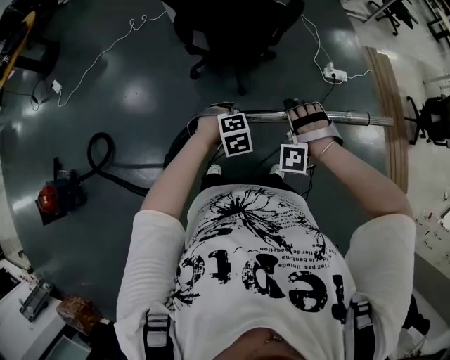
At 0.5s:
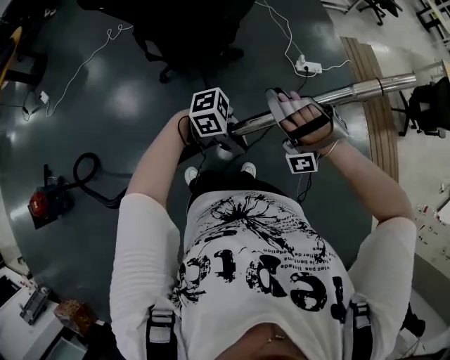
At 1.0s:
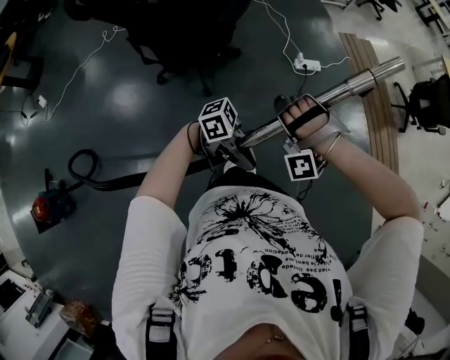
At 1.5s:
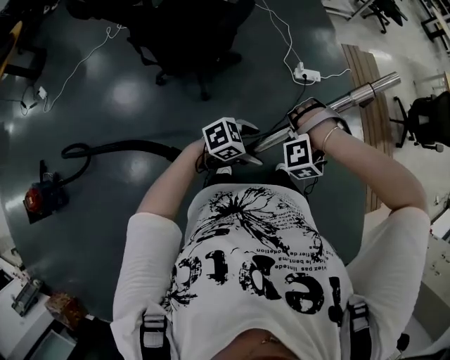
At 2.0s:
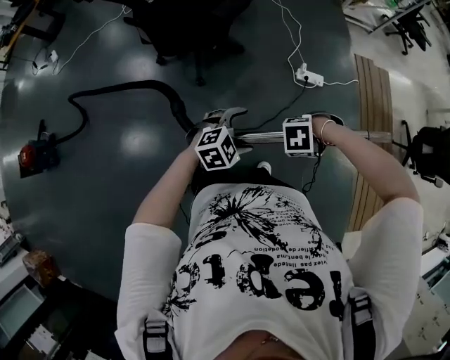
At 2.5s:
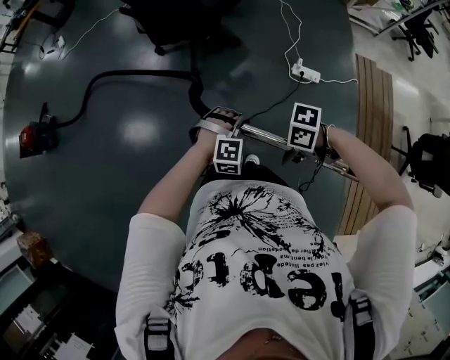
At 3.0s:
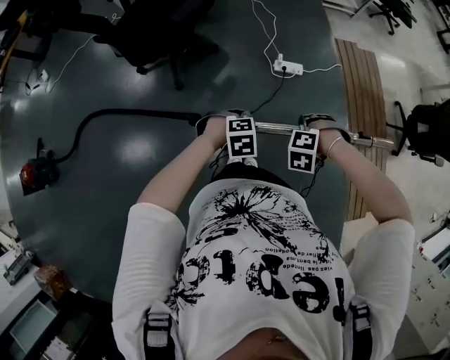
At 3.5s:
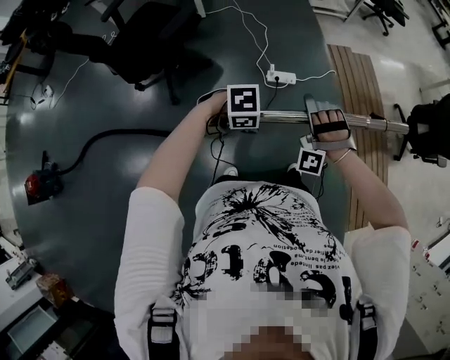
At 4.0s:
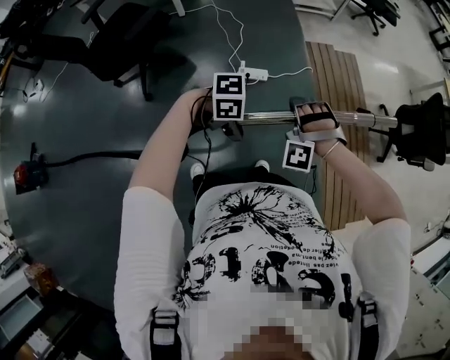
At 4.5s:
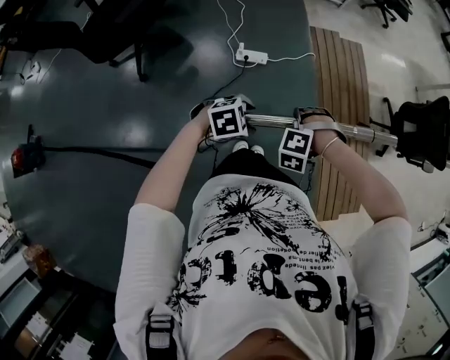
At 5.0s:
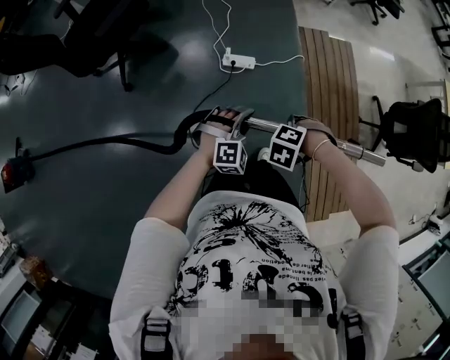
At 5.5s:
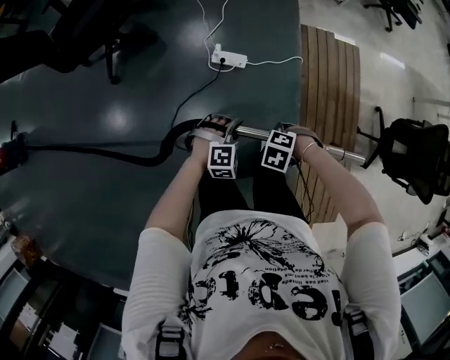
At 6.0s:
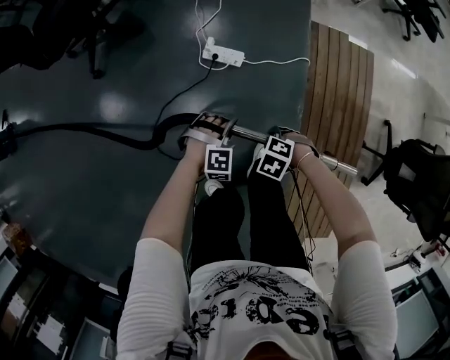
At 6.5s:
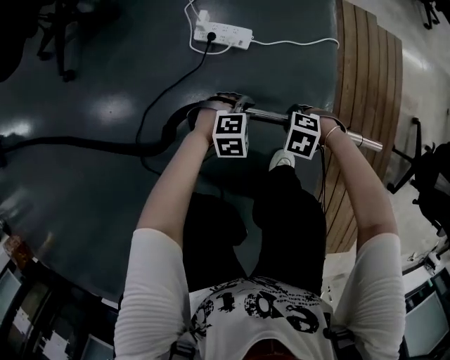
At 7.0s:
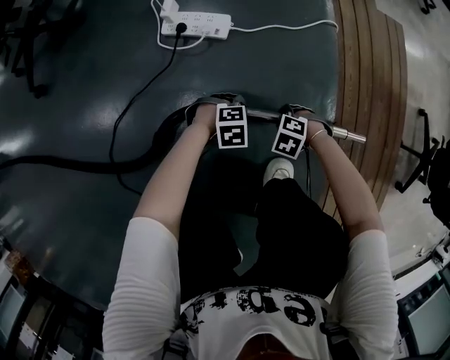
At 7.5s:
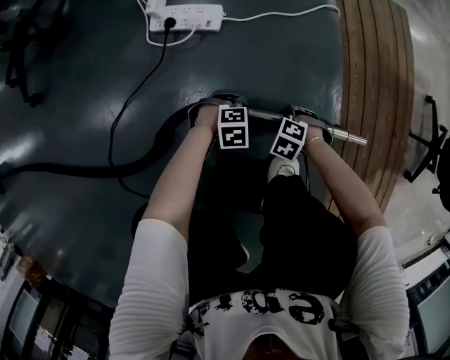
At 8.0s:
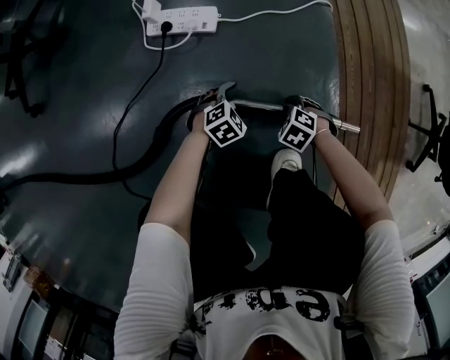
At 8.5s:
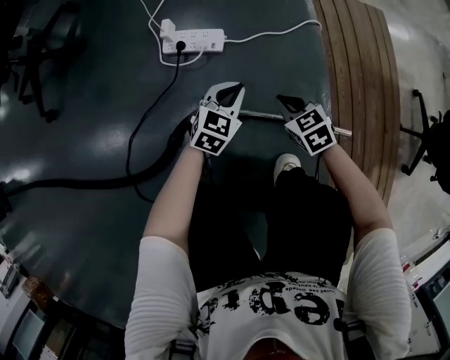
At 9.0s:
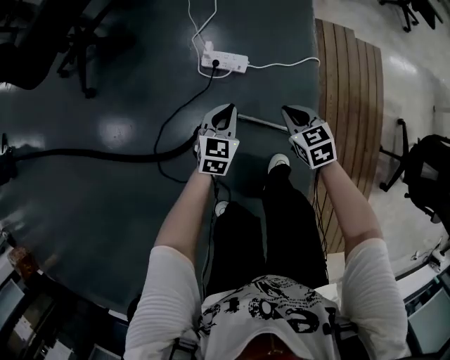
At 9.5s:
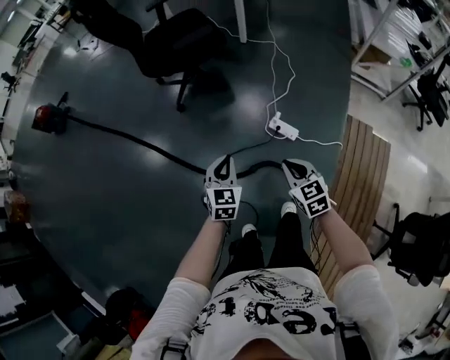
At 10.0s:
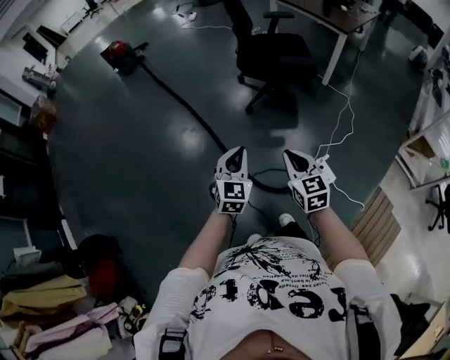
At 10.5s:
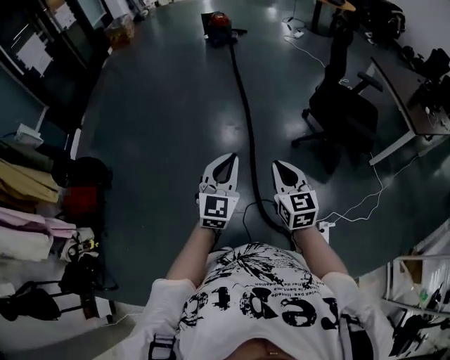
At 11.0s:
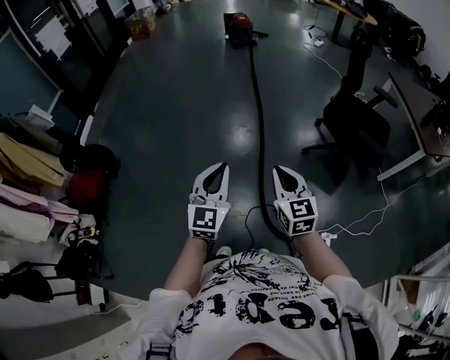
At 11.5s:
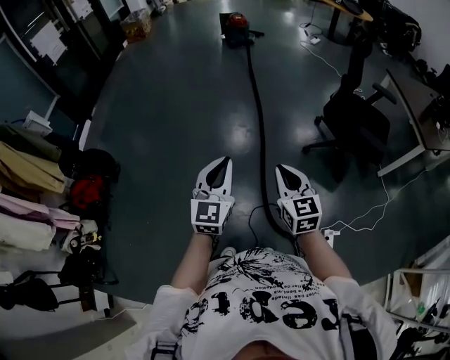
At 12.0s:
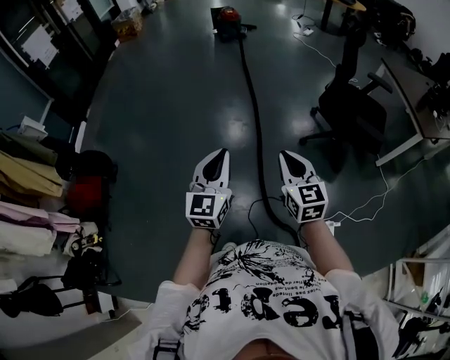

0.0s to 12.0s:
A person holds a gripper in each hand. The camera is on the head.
0.0s to 2.0s: The left gripper travels upward and back again, about 10 cm each way, turns by some 30 degrees, and opens its fingers.
2.0s to 4.0s: The left gripper shifts by some 40 cm, rotates roughly 60 degrees, and closes up.
4.0s to 6.0s: The left gripper travels downward by roughly 35 cm, and swivels some 70 degrees.
6.0s to 8.0s: The left gripper goes about 50 cm downward, swivels approximately 40 degrees, and opens up.
8.0s to 10.0s: The left gripper heads upward, covering approximately 1 m, tips its fingers upward by roughly 40 degrees, and closes its fingers.
10.0s to 12.0s: The left gripper changes place by approximately 25 cm, and rotates approximately 40 degrees.

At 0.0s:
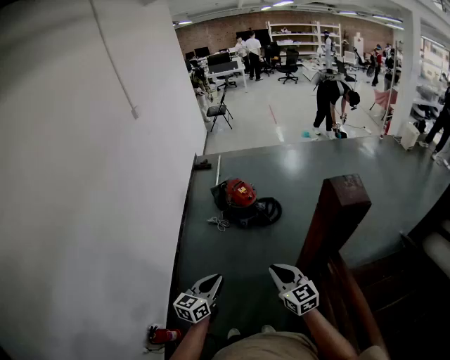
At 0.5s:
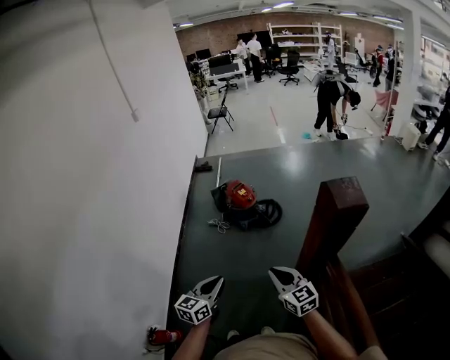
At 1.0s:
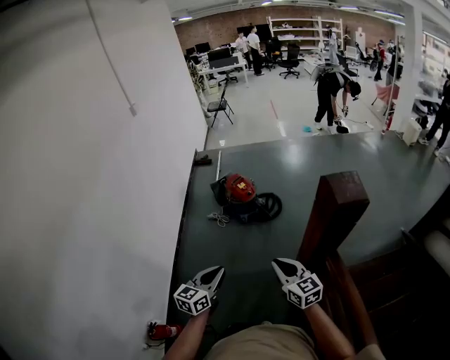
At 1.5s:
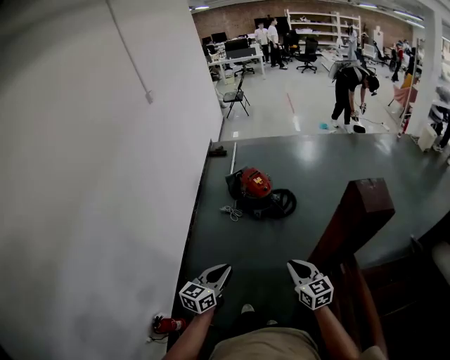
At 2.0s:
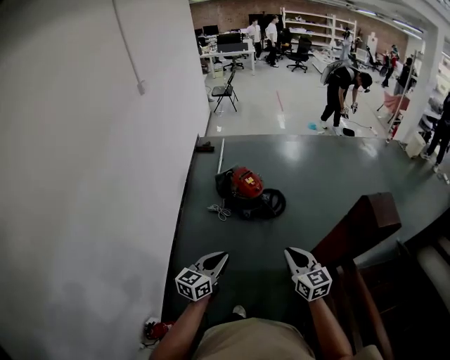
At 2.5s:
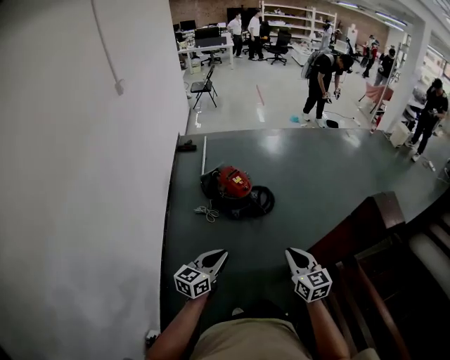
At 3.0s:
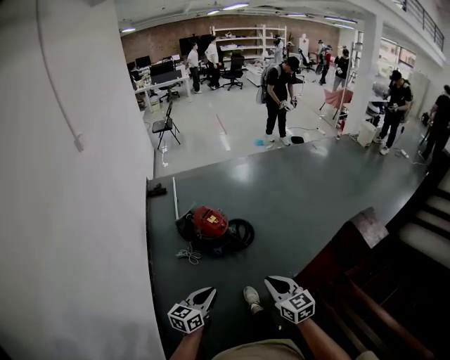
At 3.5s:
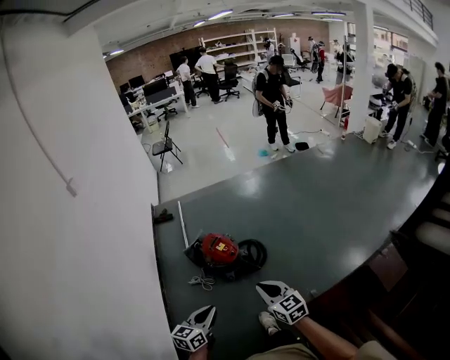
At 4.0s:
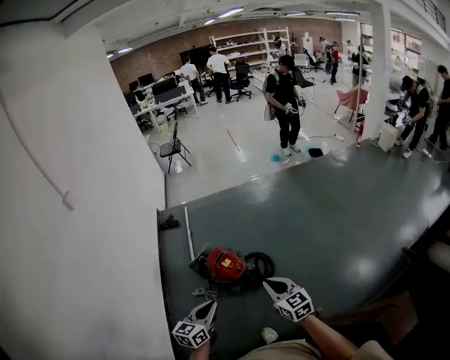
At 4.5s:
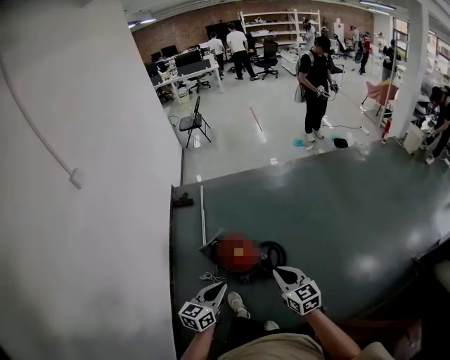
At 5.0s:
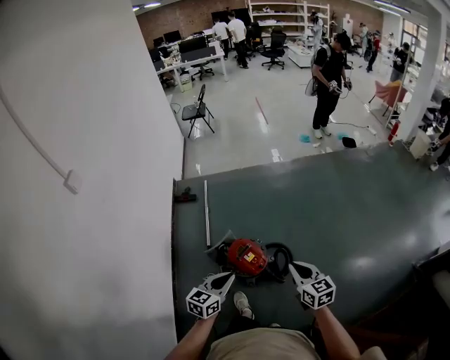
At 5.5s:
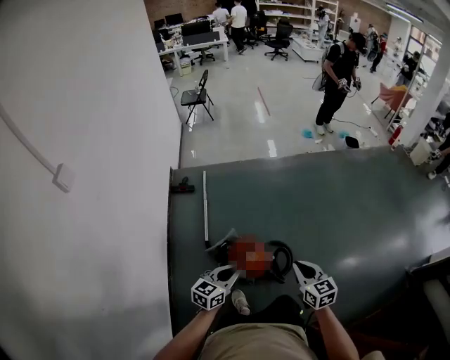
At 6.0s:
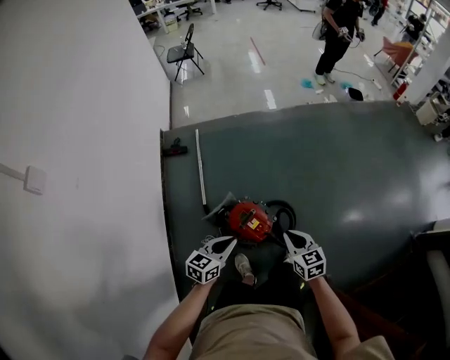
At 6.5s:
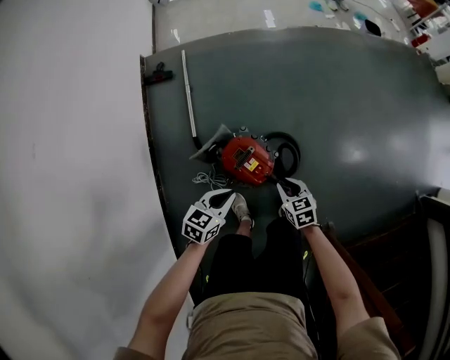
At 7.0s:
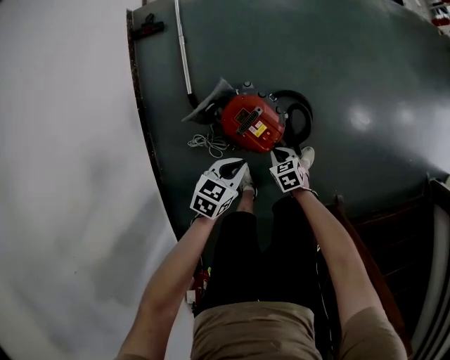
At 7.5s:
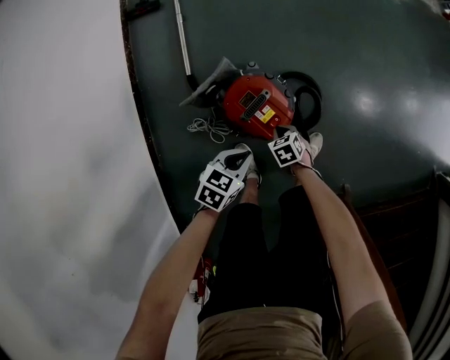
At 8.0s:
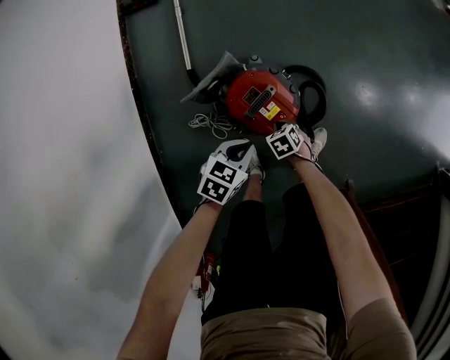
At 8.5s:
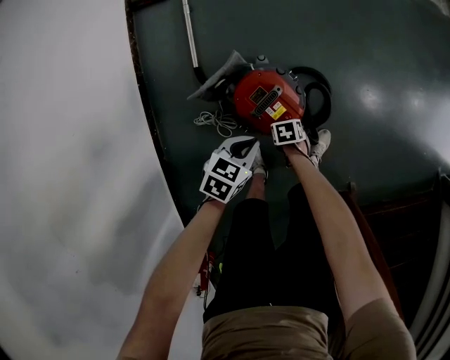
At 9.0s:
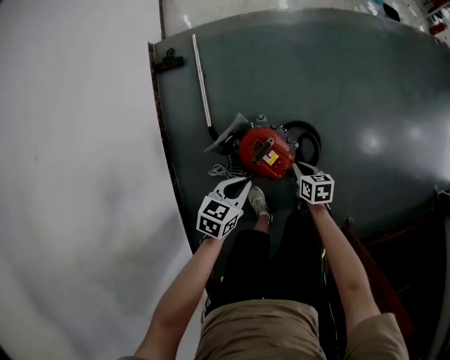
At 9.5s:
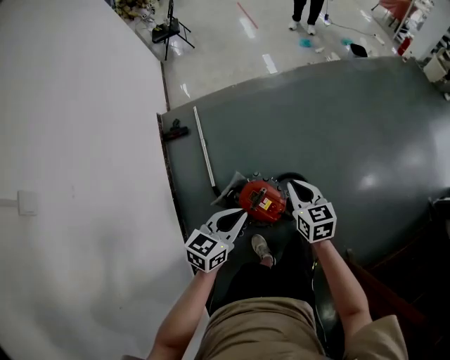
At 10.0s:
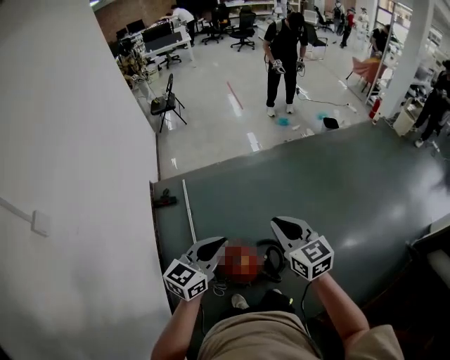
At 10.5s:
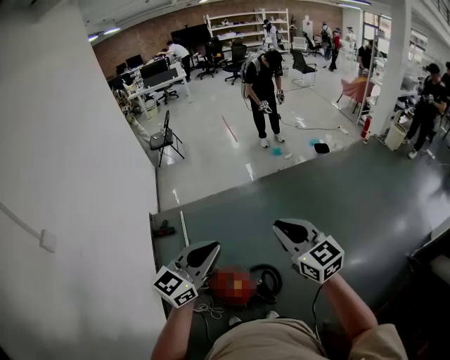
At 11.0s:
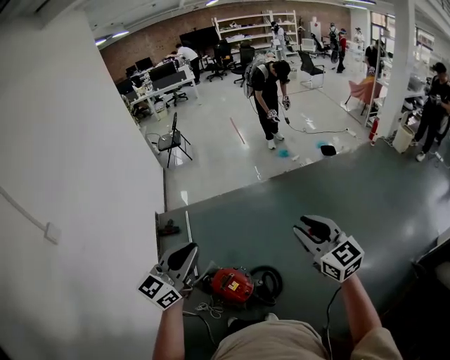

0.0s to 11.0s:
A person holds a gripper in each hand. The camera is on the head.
0.0s to 2.0s: The right gripper goes about 10 cm forward; the left gripper travels forward and to the left by approximately 15 cm.
2.0s to 3.5s: The two grippers go about 25 cm forward.
3.5s to 5.5s: The two grippers travel together, forward, roughly 50 cm.
5.5s to 7.5s: The two grippers go about 50 cm downward. The left gripper swivels roughly 30 degrees. Meanwhile the right gripper tilts its fingers roughly 40 degrees downward.
7.5s to 9.0s: Both grippers move upward, about 20 cm. The right gripper swivels some 40 degrees.
9.0s to 11.0s: The two grippers go approximately 60 cm upward. The right gripper points its fingers approximately 50 degrees further upward, and opens up. The left gripper tilts its fingers about 50 degrees upward.

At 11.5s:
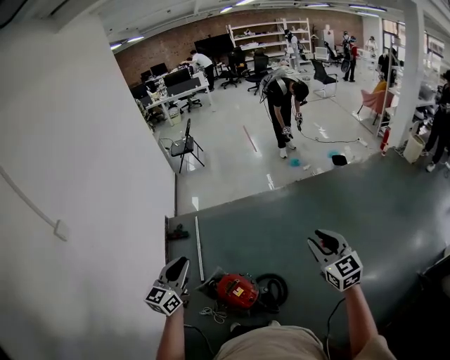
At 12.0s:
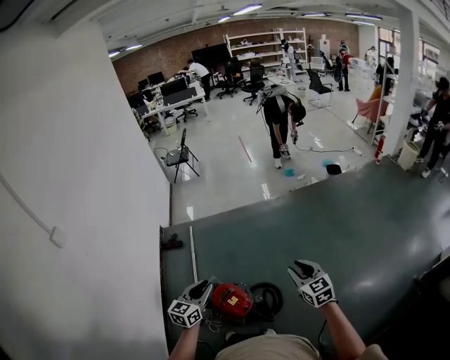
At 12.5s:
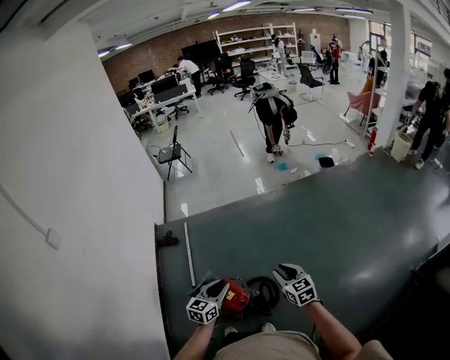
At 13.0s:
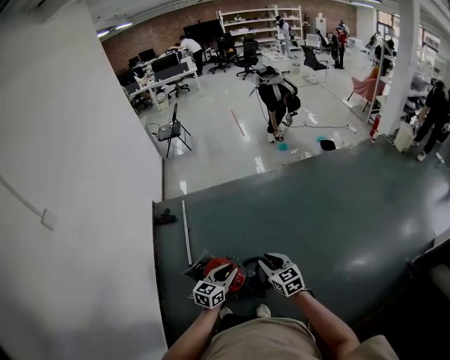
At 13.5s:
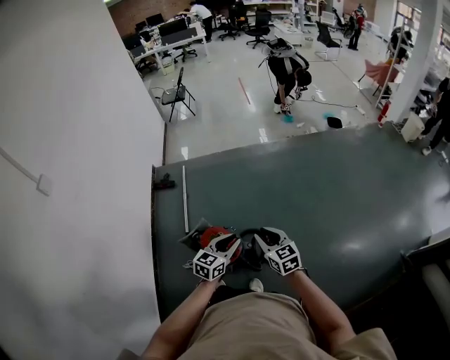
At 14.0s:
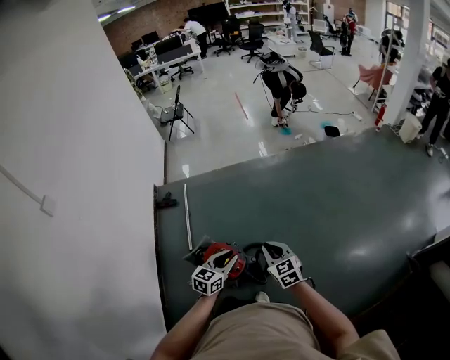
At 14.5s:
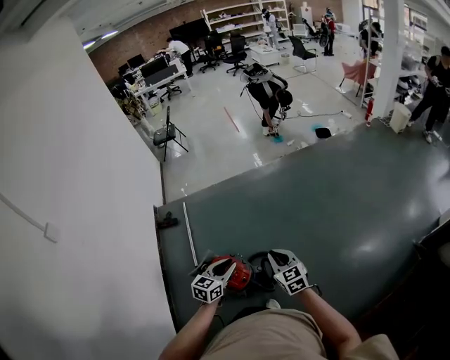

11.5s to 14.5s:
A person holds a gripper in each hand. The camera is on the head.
11.5s to 13.0s: The left gripper goes about 30 cm downward and to the right, and swivels some 20 degrees; the right gripper heads downward and to the left, covering roughly 25 cm, and swivels some 20 degrees.
13.0s to 14.5s: The grippers move only a little.

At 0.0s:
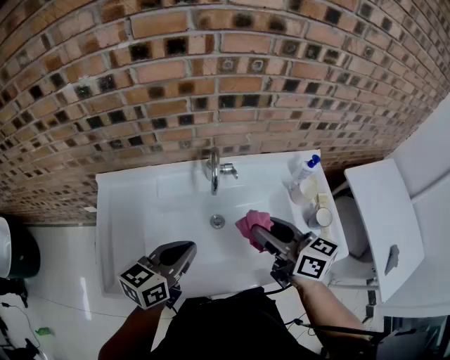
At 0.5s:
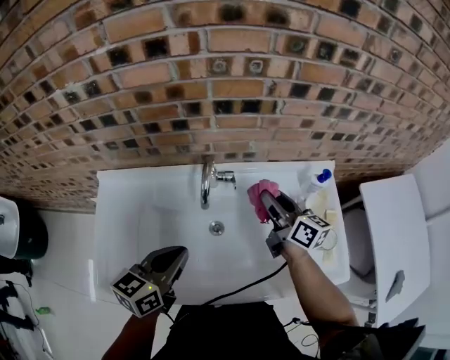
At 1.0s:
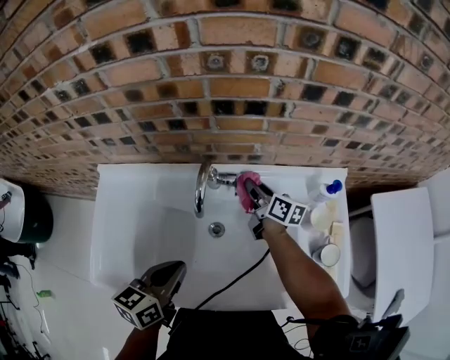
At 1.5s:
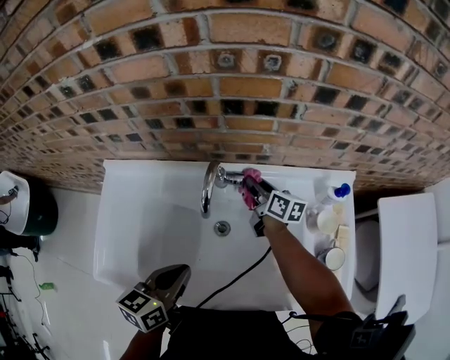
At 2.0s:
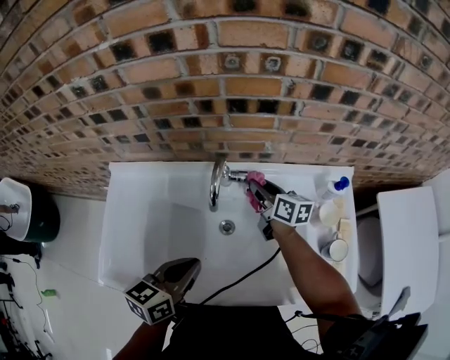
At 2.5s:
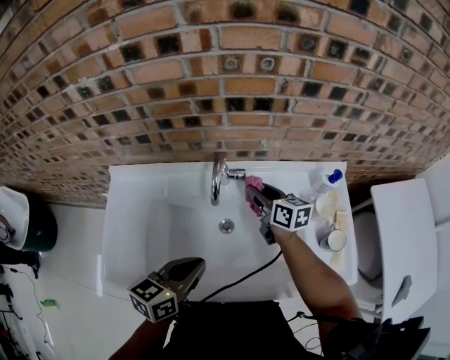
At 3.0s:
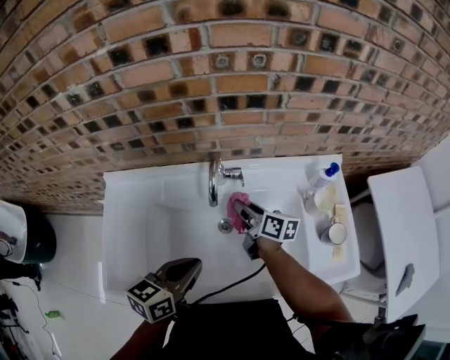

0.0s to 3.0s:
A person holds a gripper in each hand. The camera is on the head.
0.0s to 1.5s: The left gripper shifts by about 5 cm, and changes its angle by roughly 20 degrees; the right gripper heads forward and downward, covering roughly 35 cm.
1.5s to 3.0s: The right gripper shifts approximately 10 cm backward.
